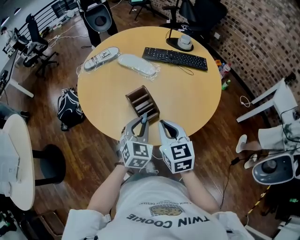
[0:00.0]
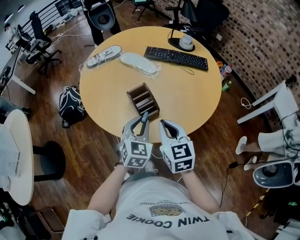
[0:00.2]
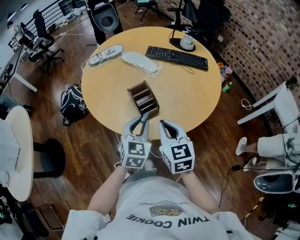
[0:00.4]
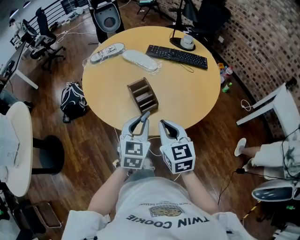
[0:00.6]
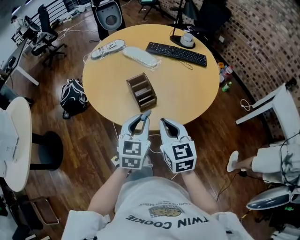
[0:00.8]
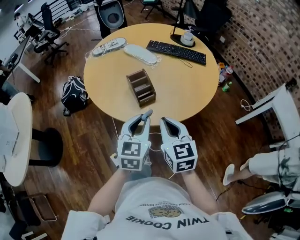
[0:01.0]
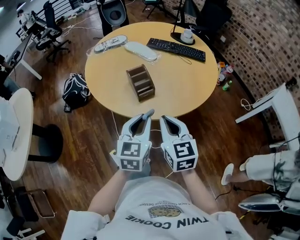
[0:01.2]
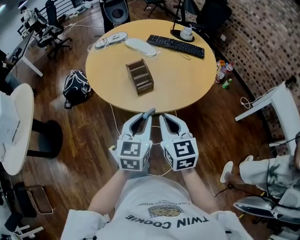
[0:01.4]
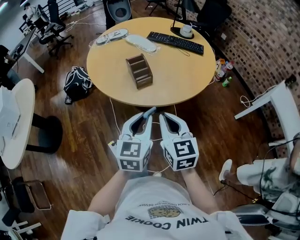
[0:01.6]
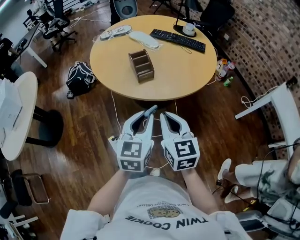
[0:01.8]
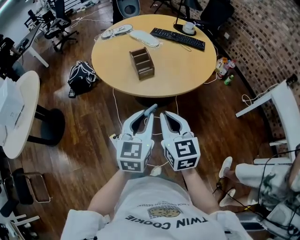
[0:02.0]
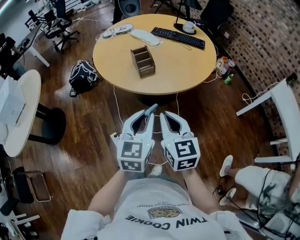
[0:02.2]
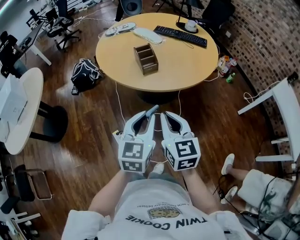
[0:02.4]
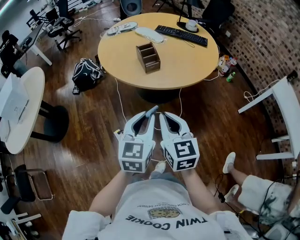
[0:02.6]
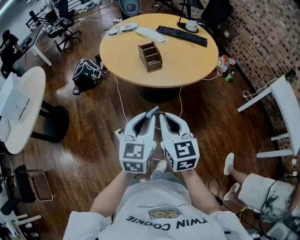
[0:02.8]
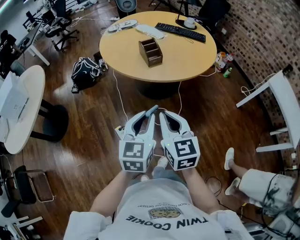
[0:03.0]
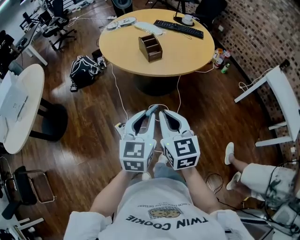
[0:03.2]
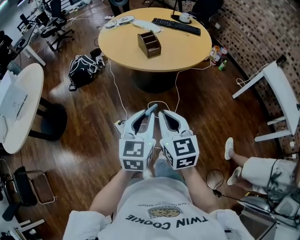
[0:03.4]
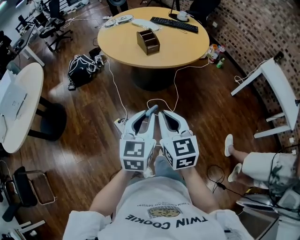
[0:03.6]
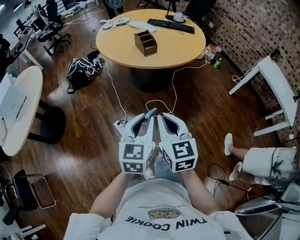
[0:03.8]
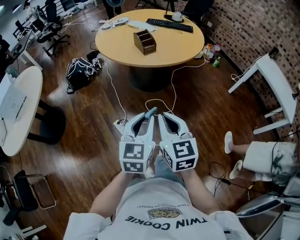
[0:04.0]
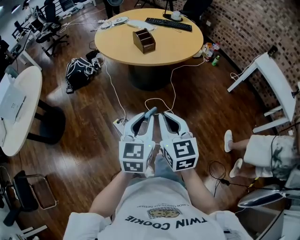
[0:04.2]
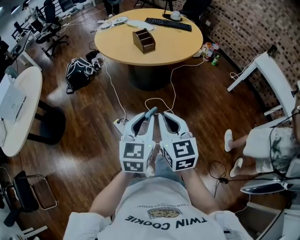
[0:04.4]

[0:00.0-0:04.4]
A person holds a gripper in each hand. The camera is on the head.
0:00.0 to 0:01.4: Both grippers travel together backward, roughly 20 cm. The left gripper changes its angle by some 30 degrees.
0:01.4 to 0:03.0: The grippers both shift backward by approximately 20 cm.
0:03.0 to 0:04.4: Both grippers travel together backward, some 15 cm.

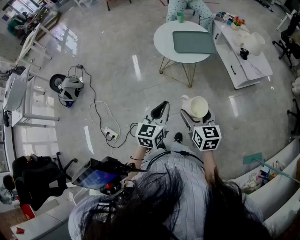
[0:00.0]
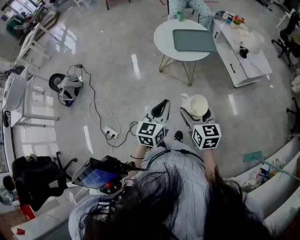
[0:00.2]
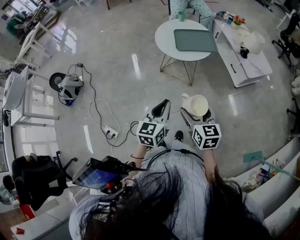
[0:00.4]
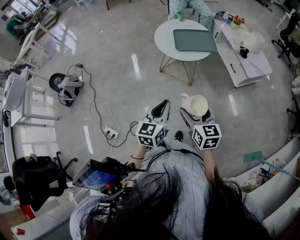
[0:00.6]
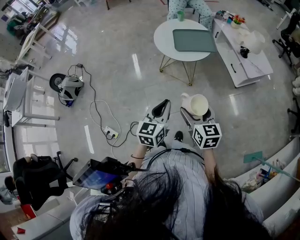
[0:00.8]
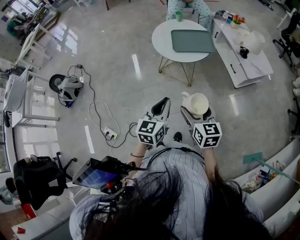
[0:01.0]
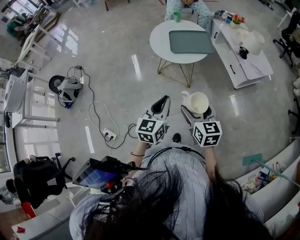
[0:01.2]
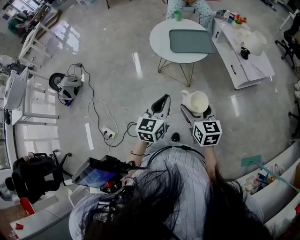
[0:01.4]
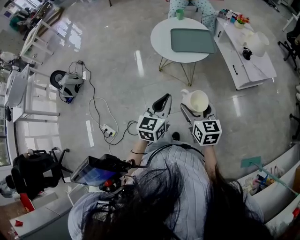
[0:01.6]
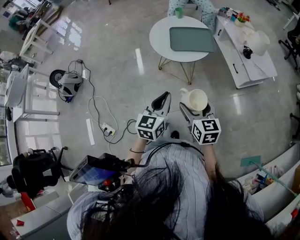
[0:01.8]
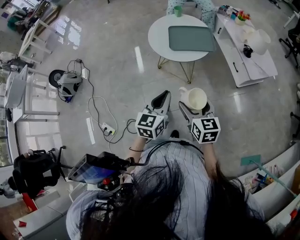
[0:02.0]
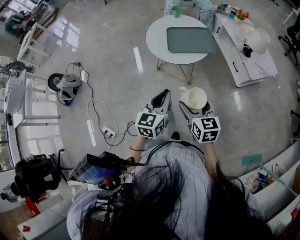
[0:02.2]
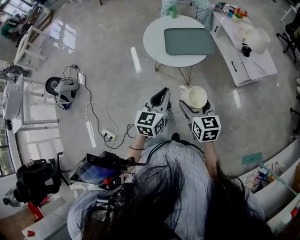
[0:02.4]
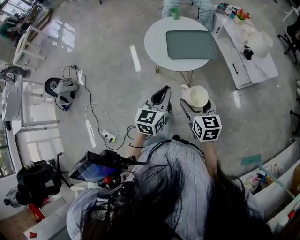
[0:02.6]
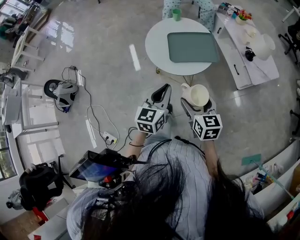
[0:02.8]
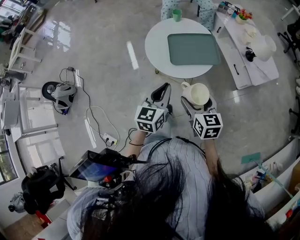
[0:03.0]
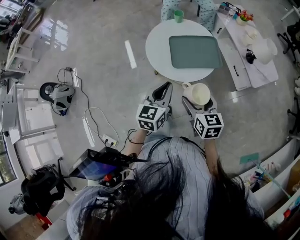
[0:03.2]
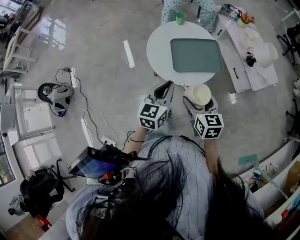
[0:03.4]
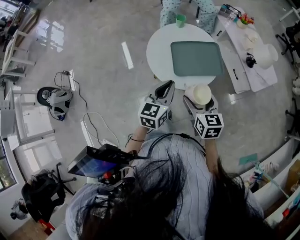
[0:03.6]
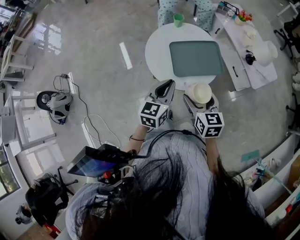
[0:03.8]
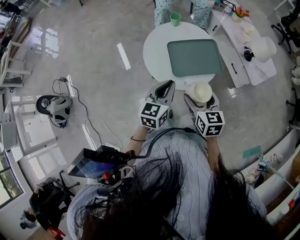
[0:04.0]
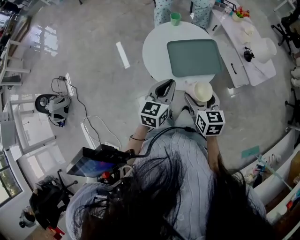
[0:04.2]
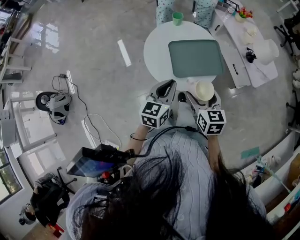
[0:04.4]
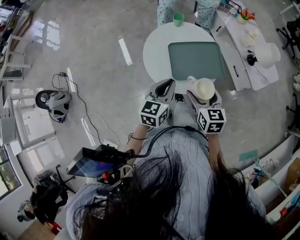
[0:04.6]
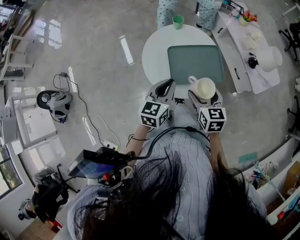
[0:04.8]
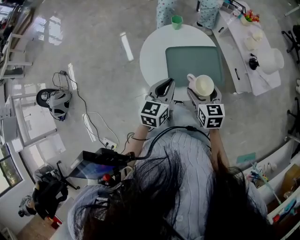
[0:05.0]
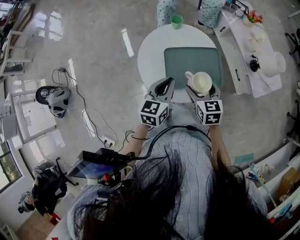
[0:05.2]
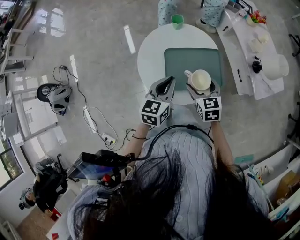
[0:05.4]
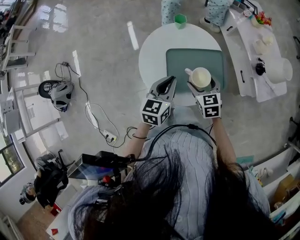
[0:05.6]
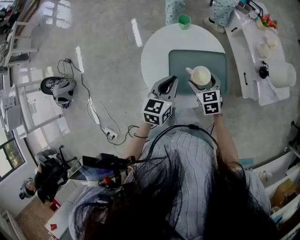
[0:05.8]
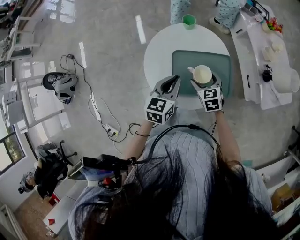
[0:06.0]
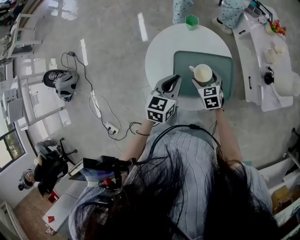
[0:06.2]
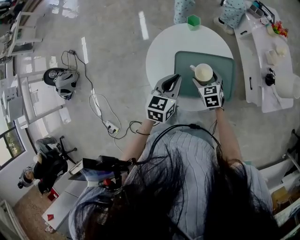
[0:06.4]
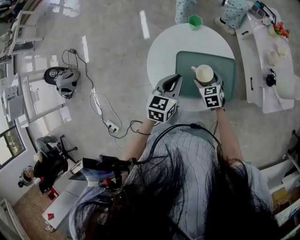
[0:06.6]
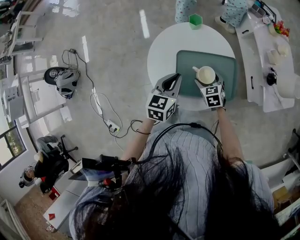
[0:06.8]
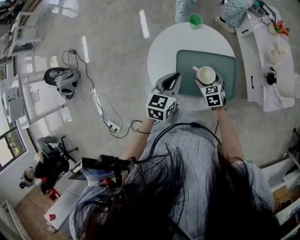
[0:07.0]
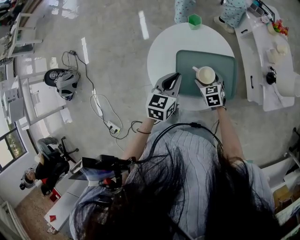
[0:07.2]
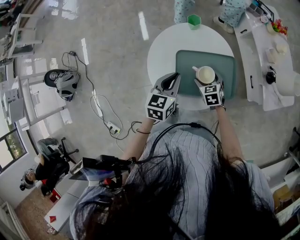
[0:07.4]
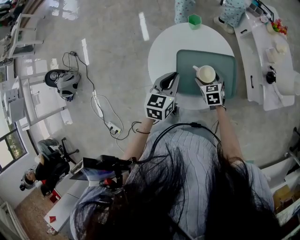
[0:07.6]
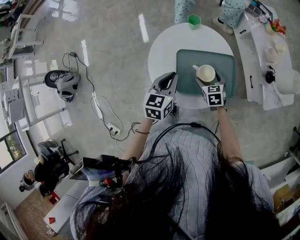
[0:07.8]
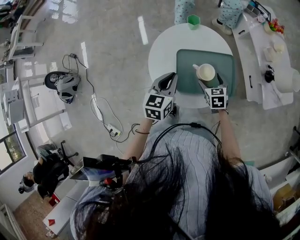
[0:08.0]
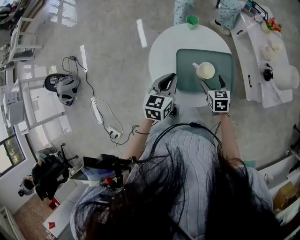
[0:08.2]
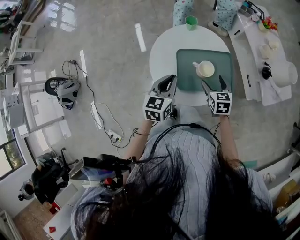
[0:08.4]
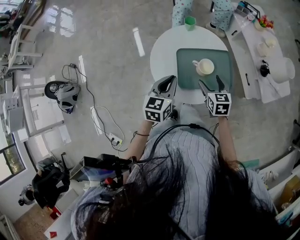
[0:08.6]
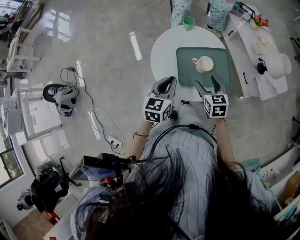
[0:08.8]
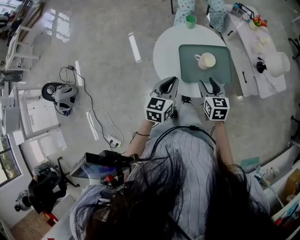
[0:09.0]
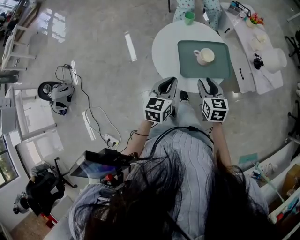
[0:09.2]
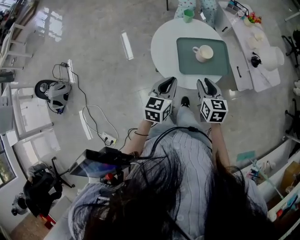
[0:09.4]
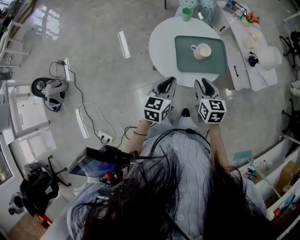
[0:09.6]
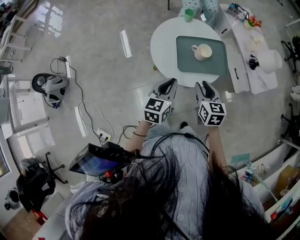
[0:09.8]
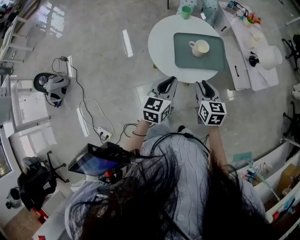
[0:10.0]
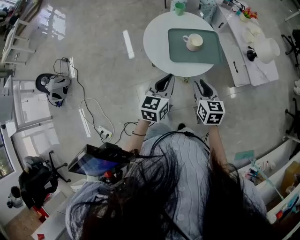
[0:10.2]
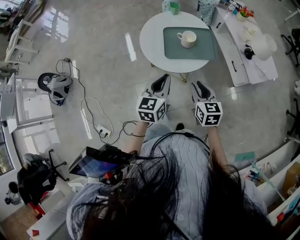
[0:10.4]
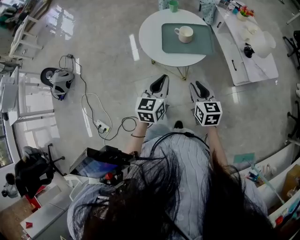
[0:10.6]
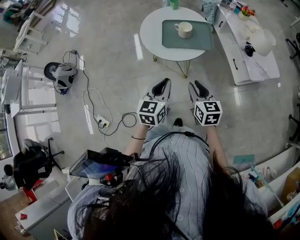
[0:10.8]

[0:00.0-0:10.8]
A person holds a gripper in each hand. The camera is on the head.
0:00.0 to 0:01.6: The two grippers go approximately 5 cm forward.
0:01.6 to 0:03.0: Both grippers move forward, some 20 cm.
0:03.0 to 0:04.6: The grippers both shift forward by some 15 cm.
0:04.6 to 0:06.2: The right gripper heads forward and downward, covering roughly 25 cm, and rotates about 30 degrees; the left gripper travels forward and downward by approximately 15 cm.
0:06.2 to 0:07.8: The grippers move only a little.
0:07.8 to 0:09.2: The left gripper shifts some 15 cm backward, while the right gripper heads backward and upward, covering about 20 cm, rotates roughly 20 degrees, and closes its fingers.
0:09.2 to 0:10.8: The two grippers go approximately 25 cm backward and to the right.

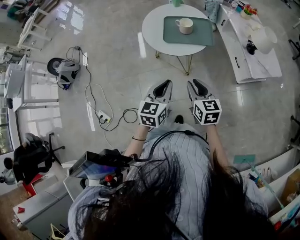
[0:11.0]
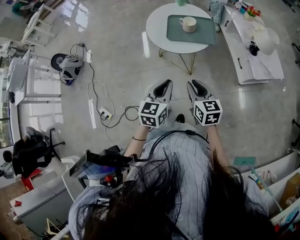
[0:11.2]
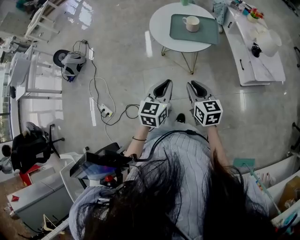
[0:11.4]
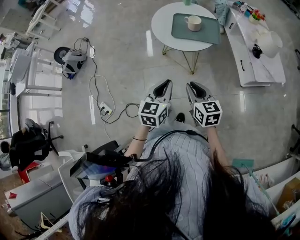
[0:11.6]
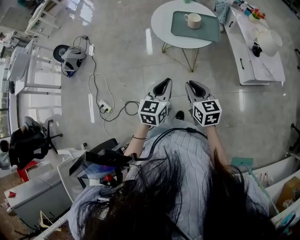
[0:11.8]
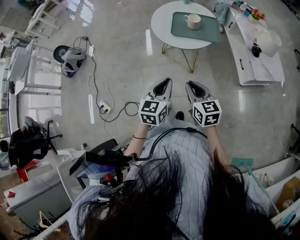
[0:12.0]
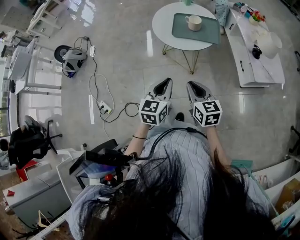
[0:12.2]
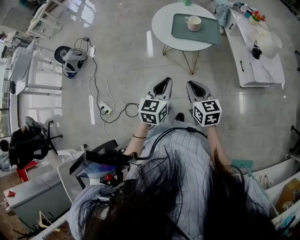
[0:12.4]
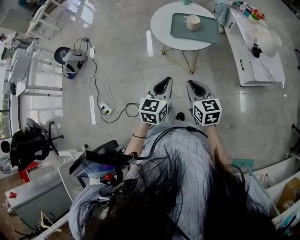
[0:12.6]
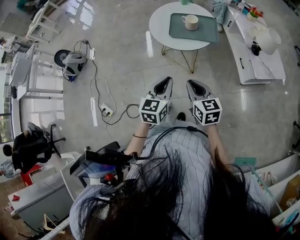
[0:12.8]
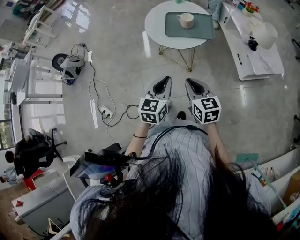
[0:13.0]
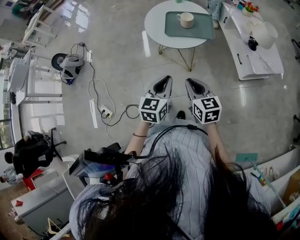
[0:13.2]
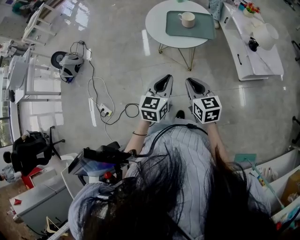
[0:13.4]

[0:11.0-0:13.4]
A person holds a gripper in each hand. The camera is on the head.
0:11.0 to 0:12.2: The right gripper shifts about 5 cm backward. Meanwhile the left gripper ends up some 5 cm from where it was.
0:12.2 to 0:13.4: The grippers stay close to where they were, moving slightly.

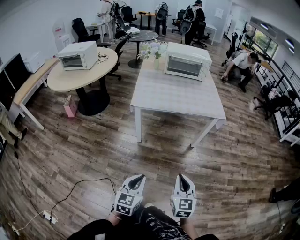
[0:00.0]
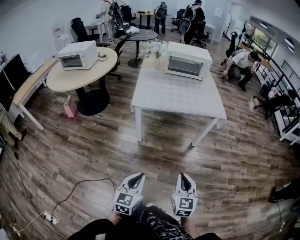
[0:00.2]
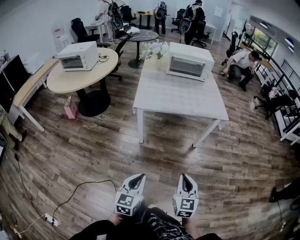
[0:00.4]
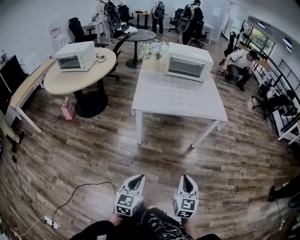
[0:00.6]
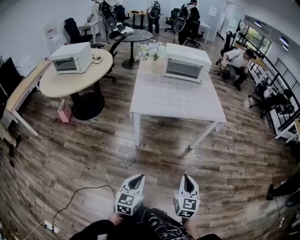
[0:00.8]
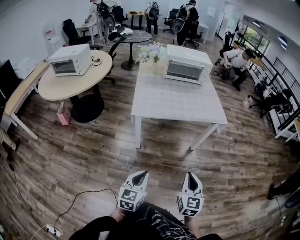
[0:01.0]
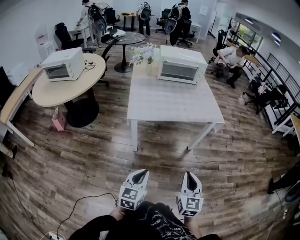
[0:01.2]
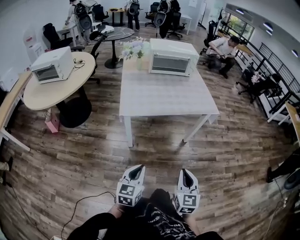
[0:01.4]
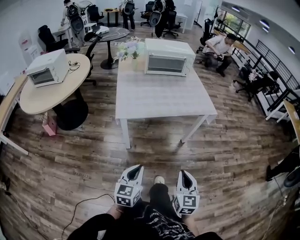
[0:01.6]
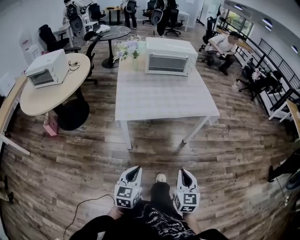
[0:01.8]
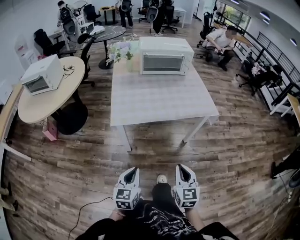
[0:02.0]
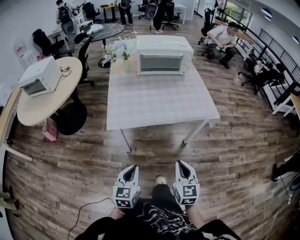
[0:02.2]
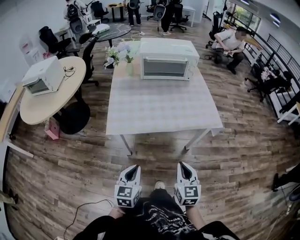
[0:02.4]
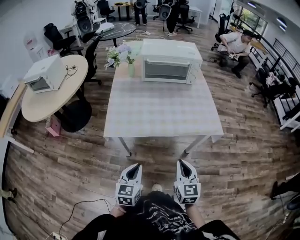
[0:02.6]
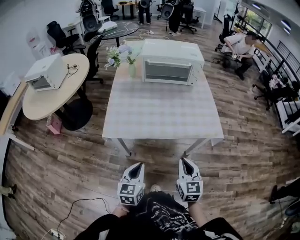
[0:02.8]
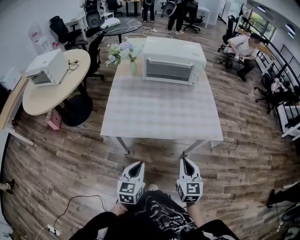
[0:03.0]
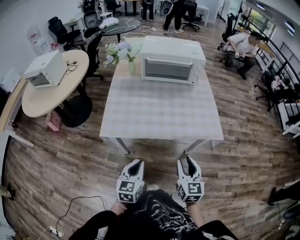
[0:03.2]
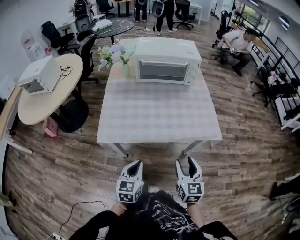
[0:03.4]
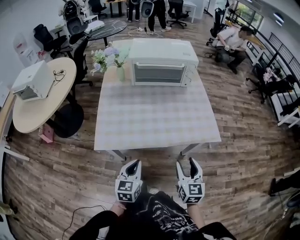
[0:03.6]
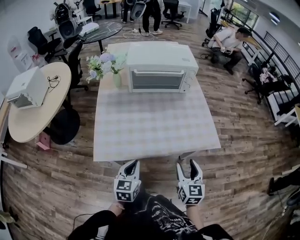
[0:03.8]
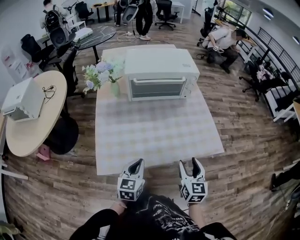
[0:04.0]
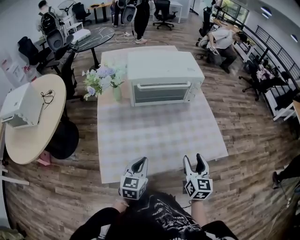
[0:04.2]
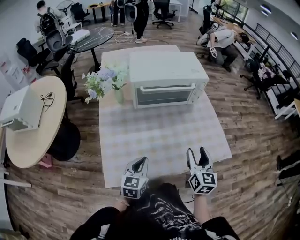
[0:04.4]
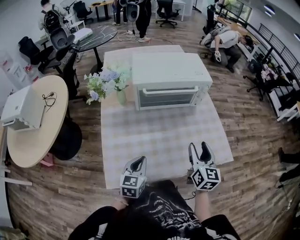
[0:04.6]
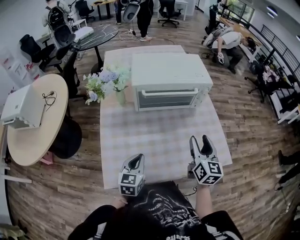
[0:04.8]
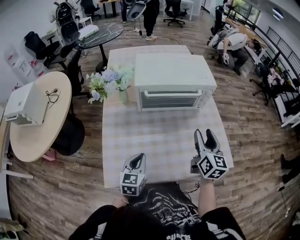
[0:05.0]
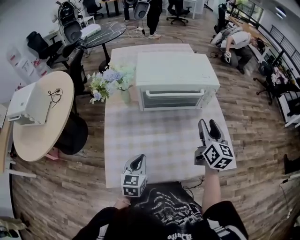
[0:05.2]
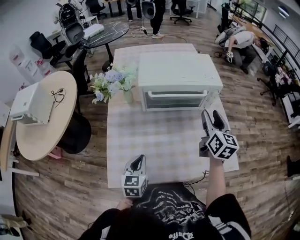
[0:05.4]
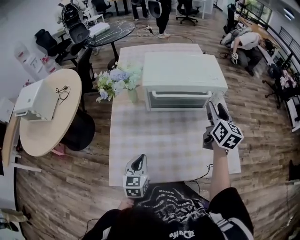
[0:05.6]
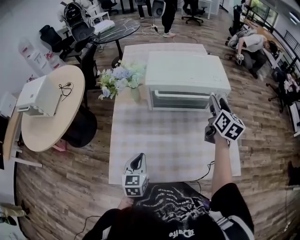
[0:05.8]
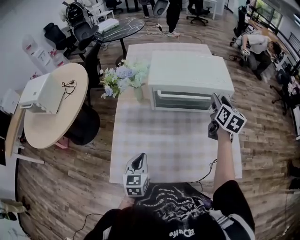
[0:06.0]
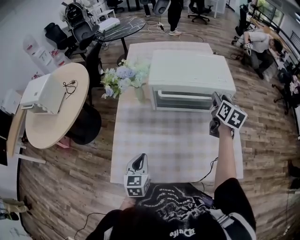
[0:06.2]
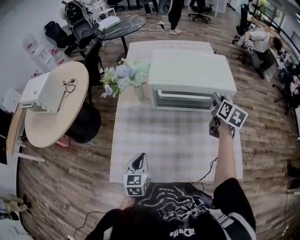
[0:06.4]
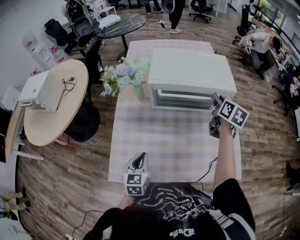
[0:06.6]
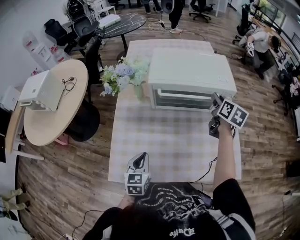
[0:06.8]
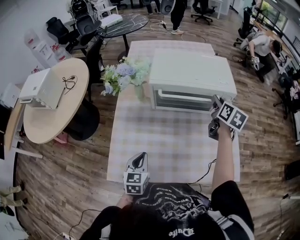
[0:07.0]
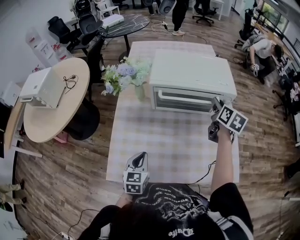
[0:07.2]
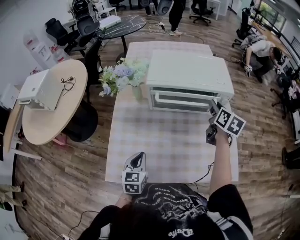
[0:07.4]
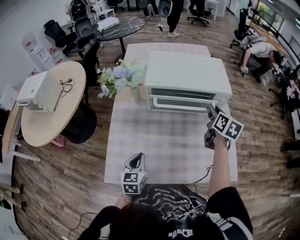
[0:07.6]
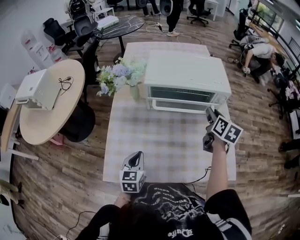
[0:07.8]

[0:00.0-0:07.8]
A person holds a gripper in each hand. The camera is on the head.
0:00.0 to 0:01.6: The grippers both shift forward and to the left by some 20 cm.
0:01.6 to 0:03.2: Both grippers move forward and to the right, some 40 cm. The right gripper opens its fingers.
0:03.2 to 0:04.6: The right gripper moves forward, about 35 cm, and opens; the left gripper travels forward and to the left by about 40 cm.
0:04.6 to 0:06.2: The right gripper moves forward, about 30 cm, while the left gripper turns by about 20 degrees.
0:06.2 to 0:07.8: The right gripper travels backward by approximately 5 cm.
